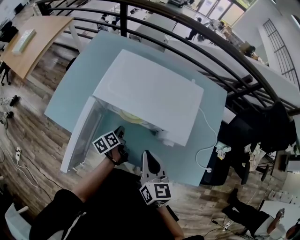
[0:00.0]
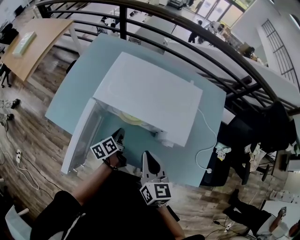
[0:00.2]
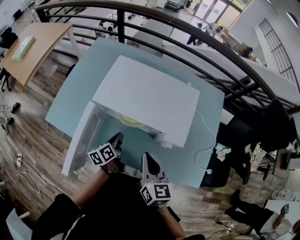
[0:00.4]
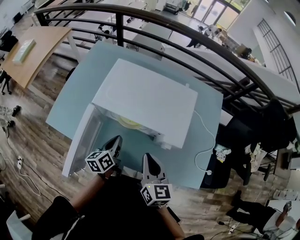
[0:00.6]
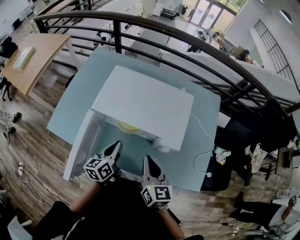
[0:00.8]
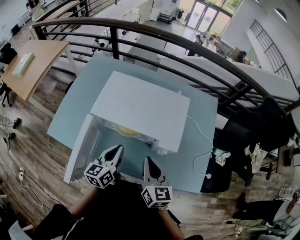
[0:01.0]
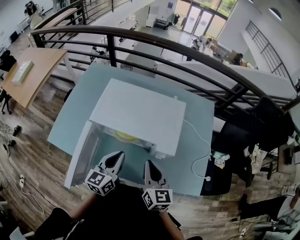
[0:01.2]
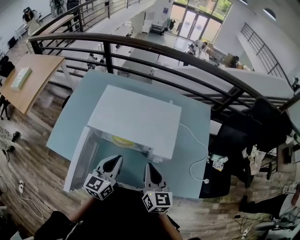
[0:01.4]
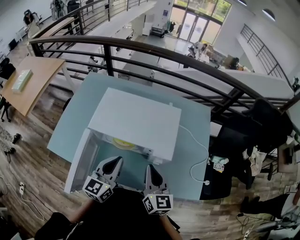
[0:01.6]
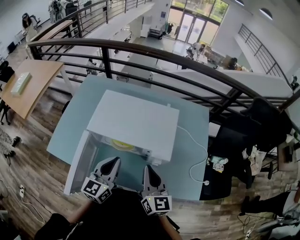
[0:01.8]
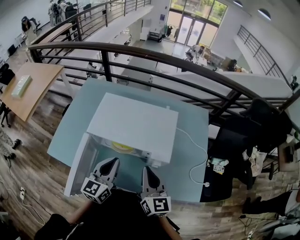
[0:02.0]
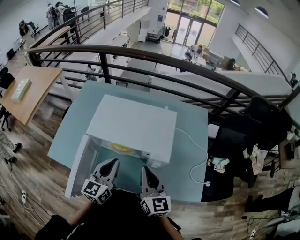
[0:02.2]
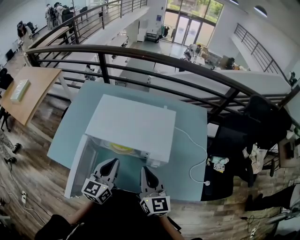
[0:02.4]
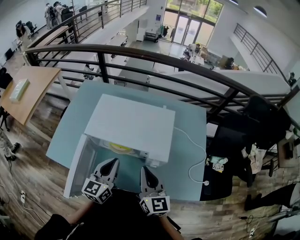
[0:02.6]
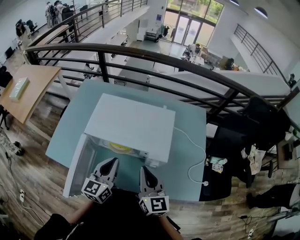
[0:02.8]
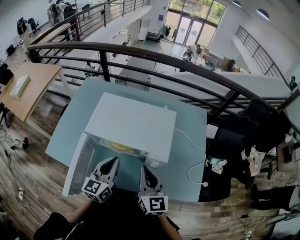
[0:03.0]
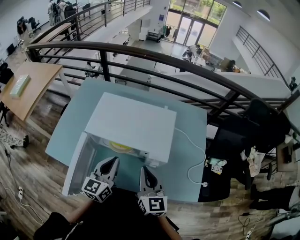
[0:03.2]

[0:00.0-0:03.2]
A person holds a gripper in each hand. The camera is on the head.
0:00.0 to 0:01.6: The right gripper moves about 10 cm.

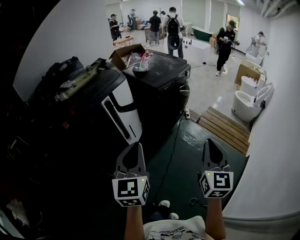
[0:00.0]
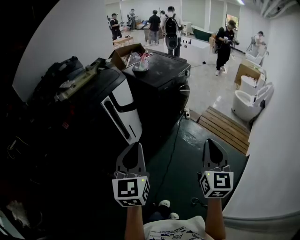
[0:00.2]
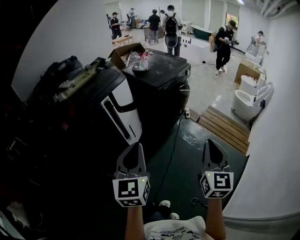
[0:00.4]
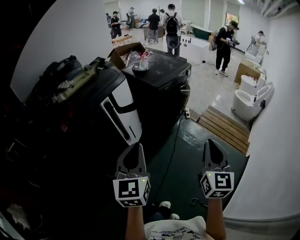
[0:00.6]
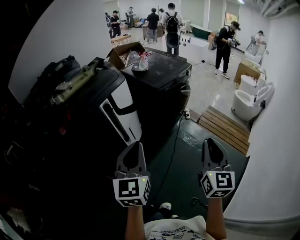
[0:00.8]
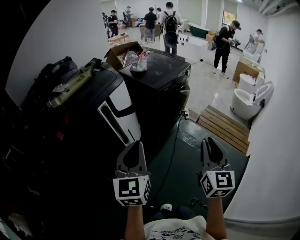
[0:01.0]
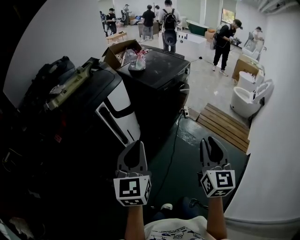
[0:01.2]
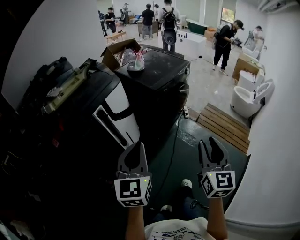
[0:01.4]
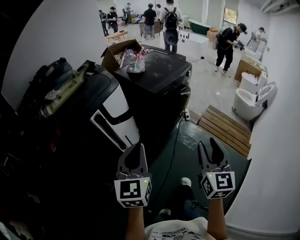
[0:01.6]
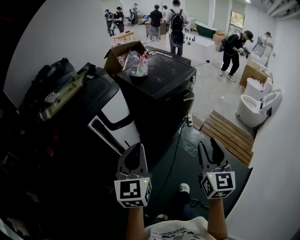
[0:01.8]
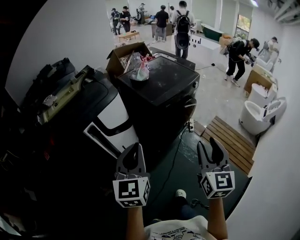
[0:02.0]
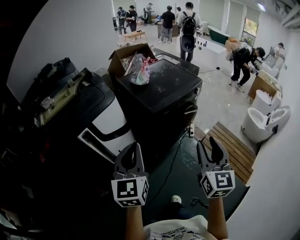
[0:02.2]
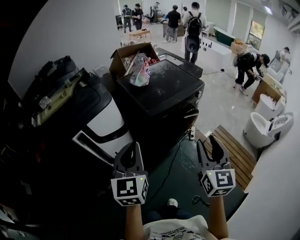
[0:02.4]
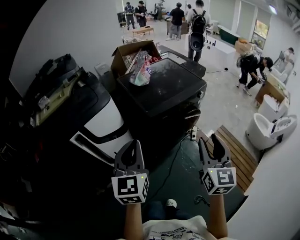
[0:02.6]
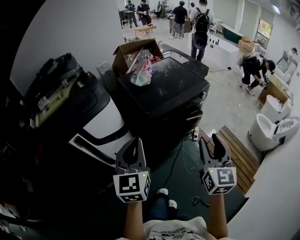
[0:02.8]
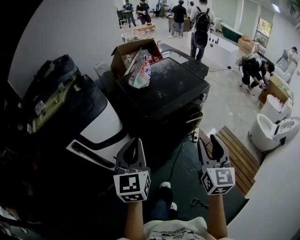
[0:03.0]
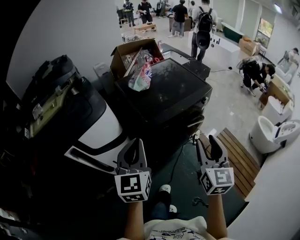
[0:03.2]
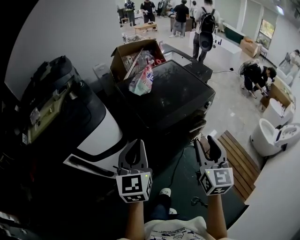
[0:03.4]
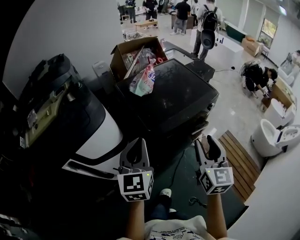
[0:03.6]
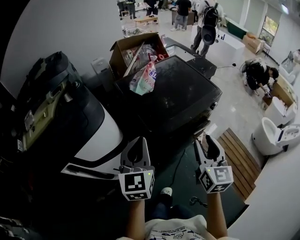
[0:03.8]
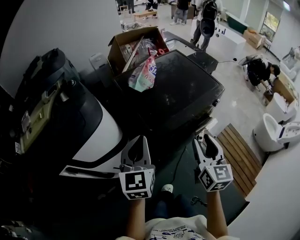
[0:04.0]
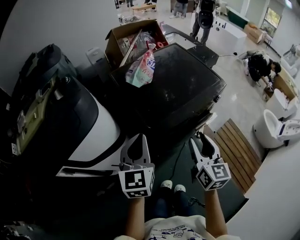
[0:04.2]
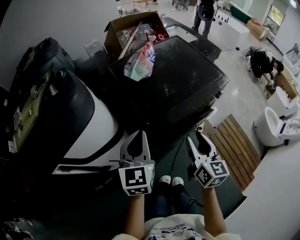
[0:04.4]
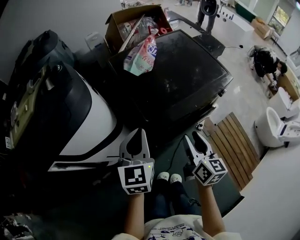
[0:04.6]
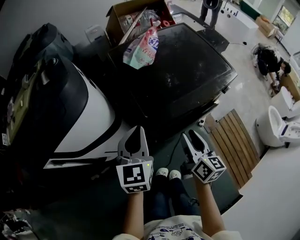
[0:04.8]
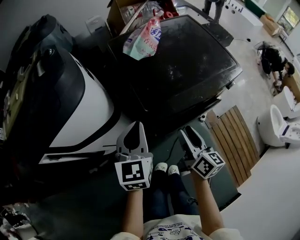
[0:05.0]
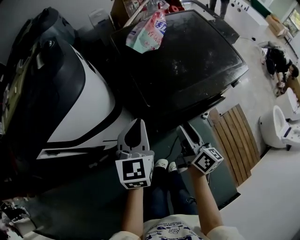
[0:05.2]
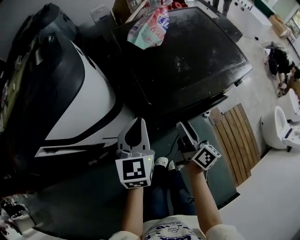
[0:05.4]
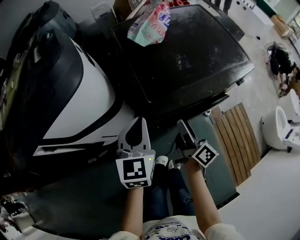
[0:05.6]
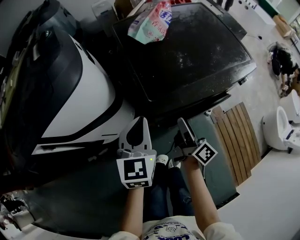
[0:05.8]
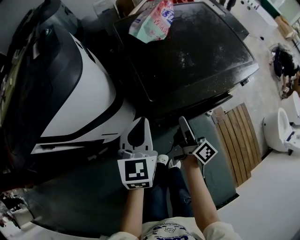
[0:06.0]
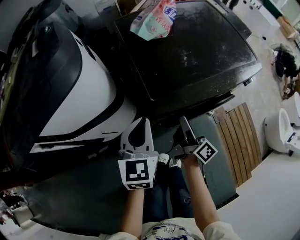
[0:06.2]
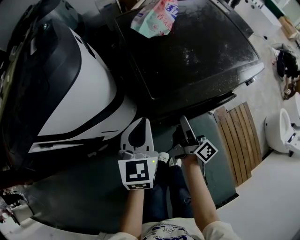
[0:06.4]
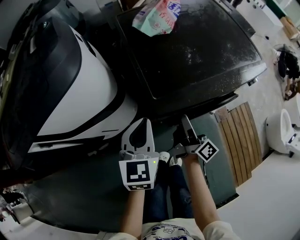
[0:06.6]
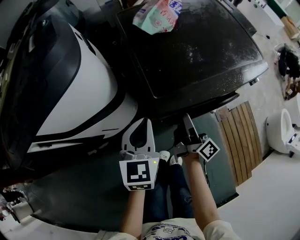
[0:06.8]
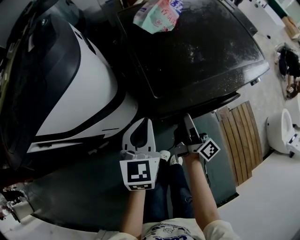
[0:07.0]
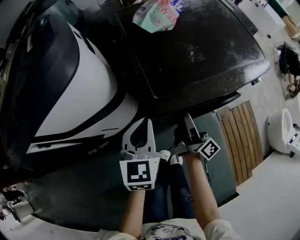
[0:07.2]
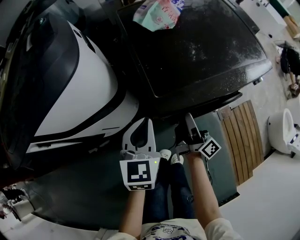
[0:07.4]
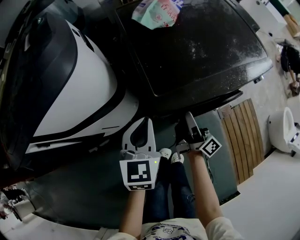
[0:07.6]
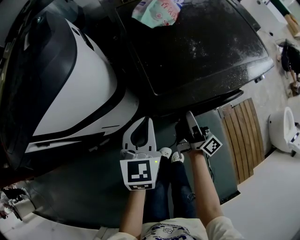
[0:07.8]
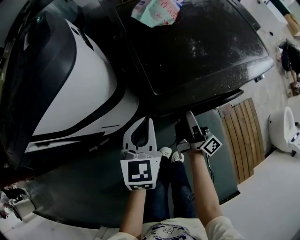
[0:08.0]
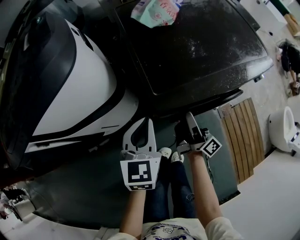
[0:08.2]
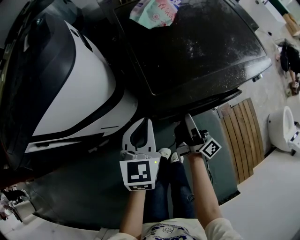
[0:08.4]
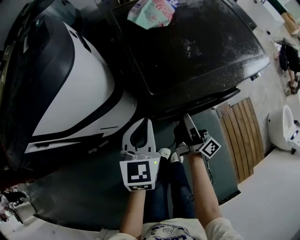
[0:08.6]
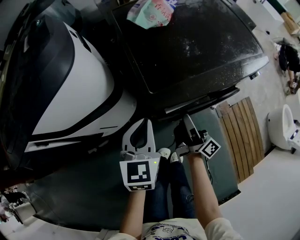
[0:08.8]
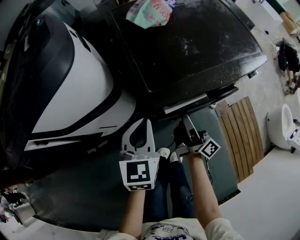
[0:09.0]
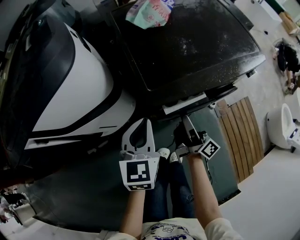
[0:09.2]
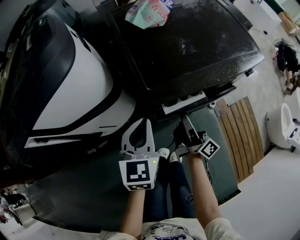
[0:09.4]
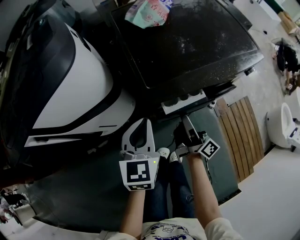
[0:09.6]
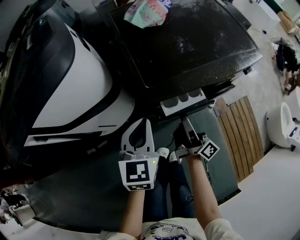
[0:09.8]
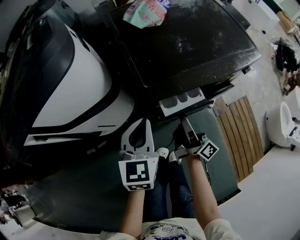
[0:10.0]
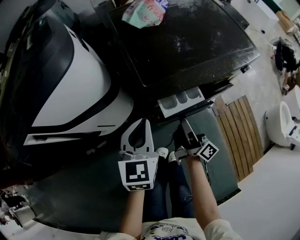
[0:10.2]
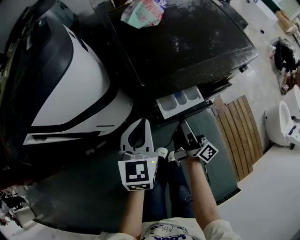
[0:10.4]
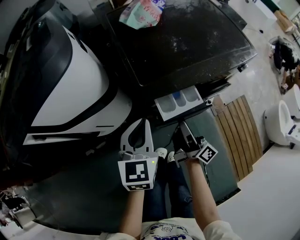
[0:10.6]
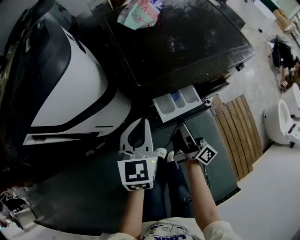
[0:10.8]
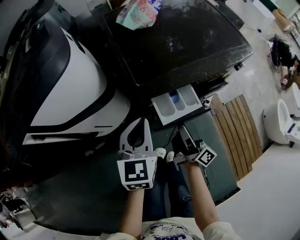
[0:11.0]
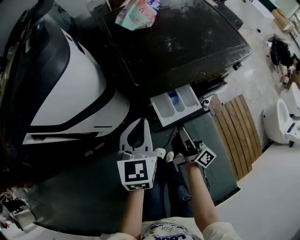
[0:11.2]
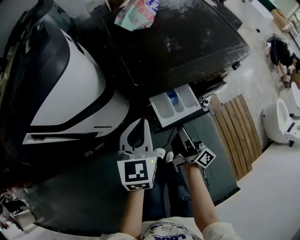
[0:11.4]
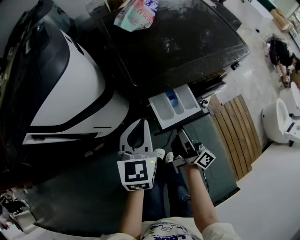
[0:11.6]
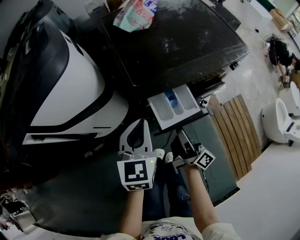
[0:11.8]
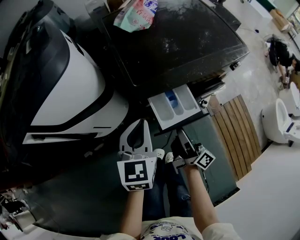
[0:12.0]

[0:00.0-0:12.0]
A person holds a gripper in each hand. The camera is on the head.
0:00.0 to 0:01.6: The grippers both shift forward by approximately 20 cm. The right gripper opens.
0:01.6 to 0:03.0: The two grippers go about 35 cm forward and to the right.
0:03.0 to 0:04.4: The two grippers go approximately 25 cm forward and downward. The right gripper rotates roughly 20 degrees.
0:04.4 to 0:06.0: The right gripper heads downward and forward, covering some 20 cm, and twists approximately 50 degrees clockwise, seen from behind. The left gripper is displaced downward by about 10 cm.
0:06.0 to 0:07.6: The left gripper is displaced downward by some 5 cm.
0:07.6 to 0:09.0: There are only small adjustments of the grippers.
0:09.0 to 0:10.4: The right gripper travels backward by about 5 cm.
0:10.4 to 0:12.0: The right gripper is displaced backward by about 5 cm.

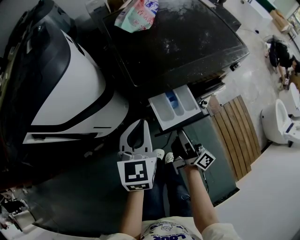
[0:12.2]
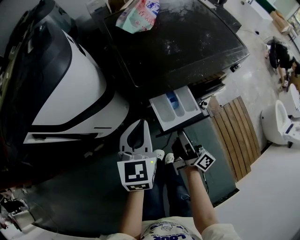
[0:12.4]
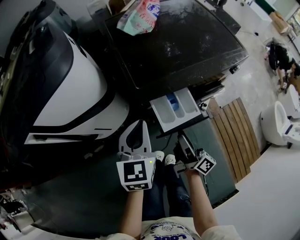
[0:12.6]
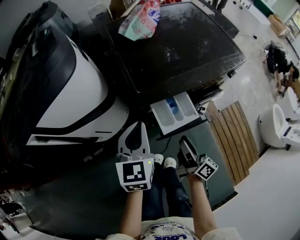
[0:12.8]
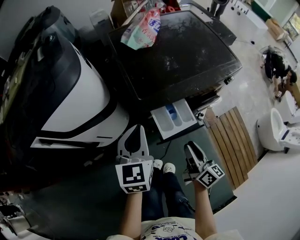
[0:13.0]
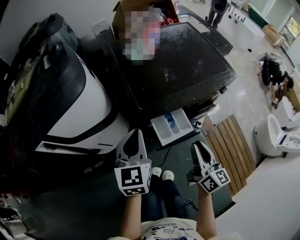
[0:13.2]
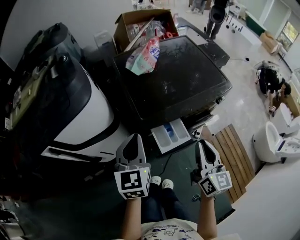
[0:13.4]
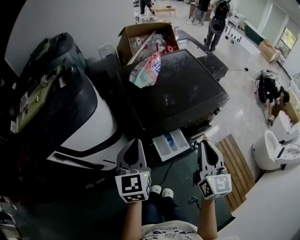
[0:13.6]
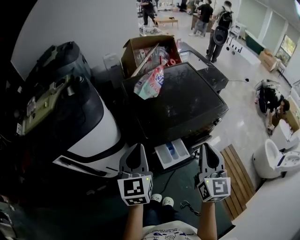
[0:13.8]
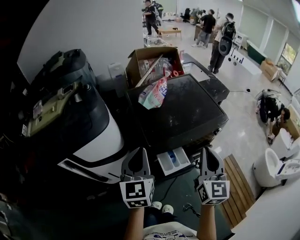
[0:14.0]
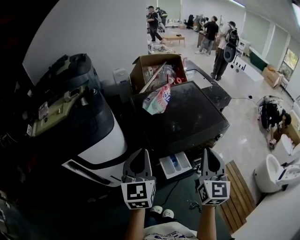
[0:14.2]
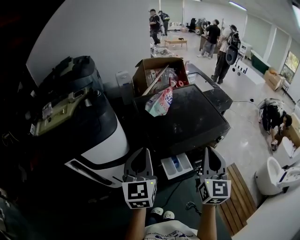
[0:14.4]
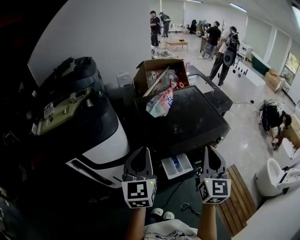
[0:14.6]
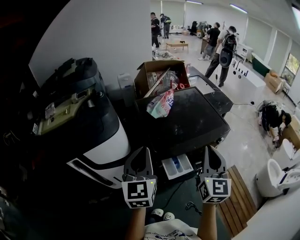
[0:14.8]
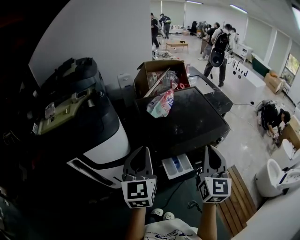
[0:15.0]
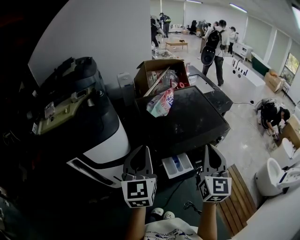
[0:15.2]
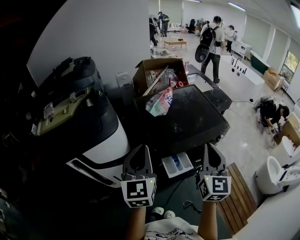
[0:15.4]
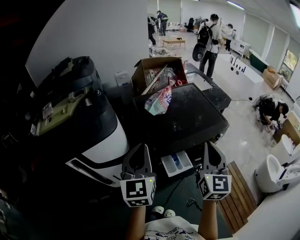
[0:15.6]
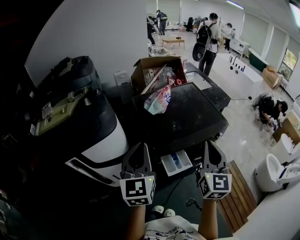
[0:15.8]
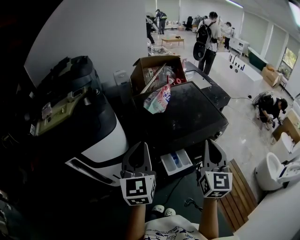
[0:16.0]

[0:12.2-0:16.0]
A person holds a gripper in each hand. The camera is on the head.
0:12.2 to 0:13.4: The left gripper is displaced upward by about 10 cm. The right gripper shifts approximately 20 cm upward, twists roughly 60 degrees counterclockwise, seen from behind, and closes its fingers.
0:13.4 to 0:14.8: The grippers both shift upward by about 20 cm. The right gripper turns by some 20 degrees.
0:14.8 to 0:16.0: Both grippers stay put.

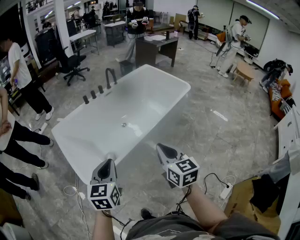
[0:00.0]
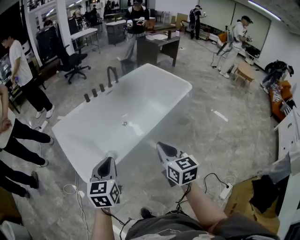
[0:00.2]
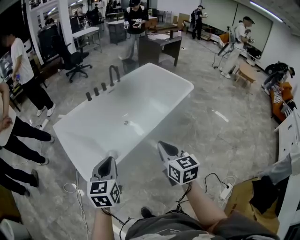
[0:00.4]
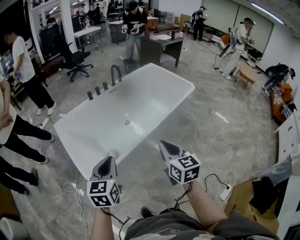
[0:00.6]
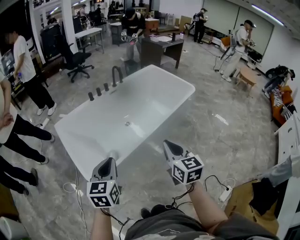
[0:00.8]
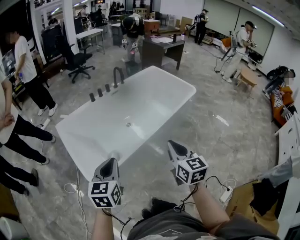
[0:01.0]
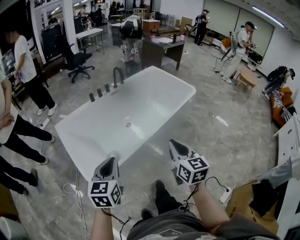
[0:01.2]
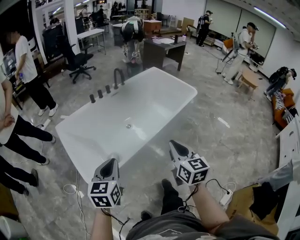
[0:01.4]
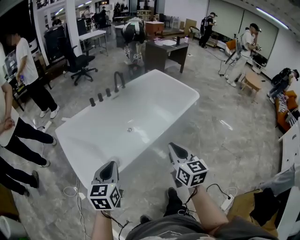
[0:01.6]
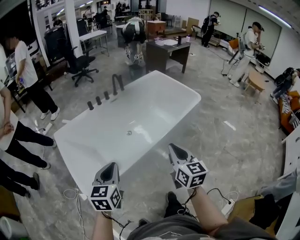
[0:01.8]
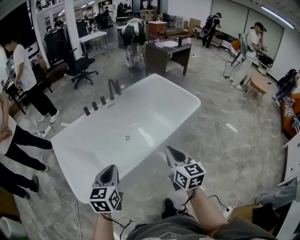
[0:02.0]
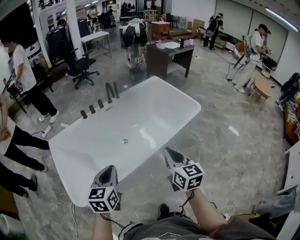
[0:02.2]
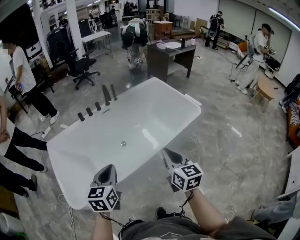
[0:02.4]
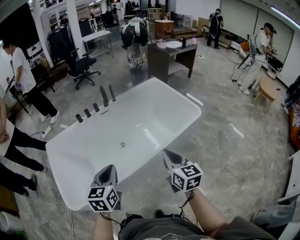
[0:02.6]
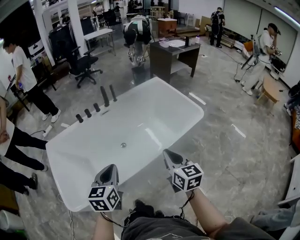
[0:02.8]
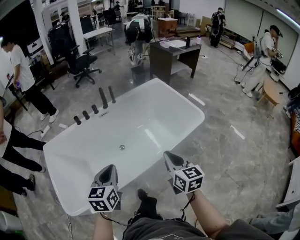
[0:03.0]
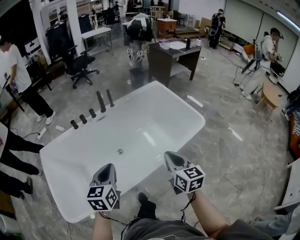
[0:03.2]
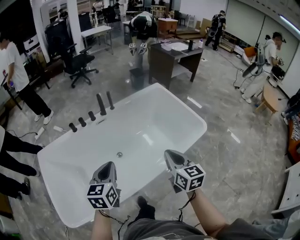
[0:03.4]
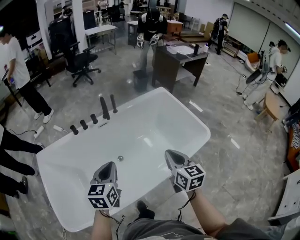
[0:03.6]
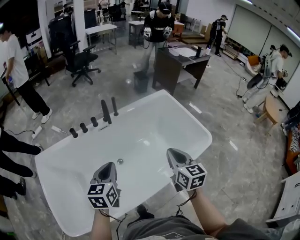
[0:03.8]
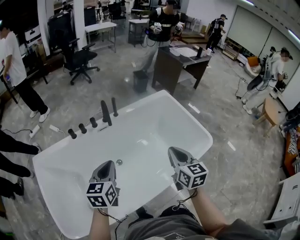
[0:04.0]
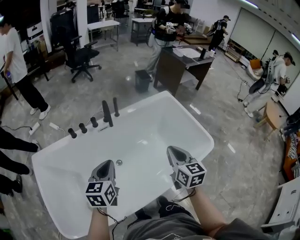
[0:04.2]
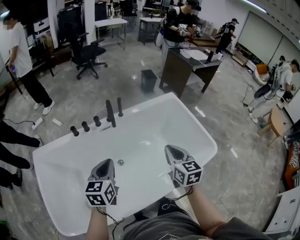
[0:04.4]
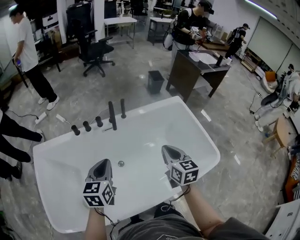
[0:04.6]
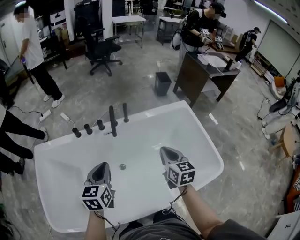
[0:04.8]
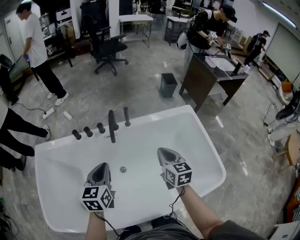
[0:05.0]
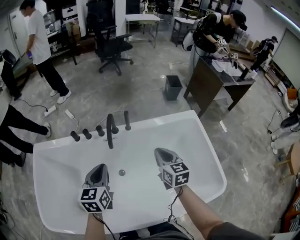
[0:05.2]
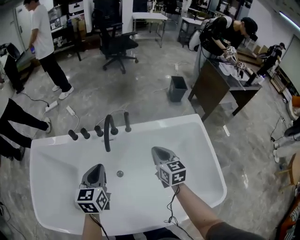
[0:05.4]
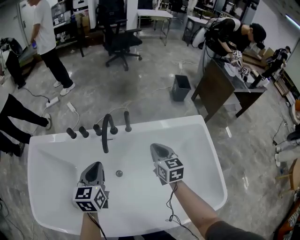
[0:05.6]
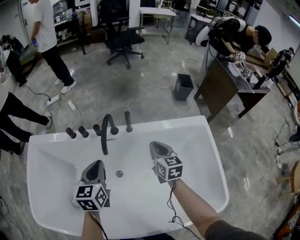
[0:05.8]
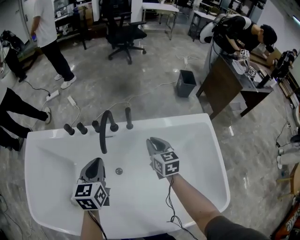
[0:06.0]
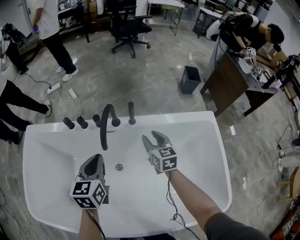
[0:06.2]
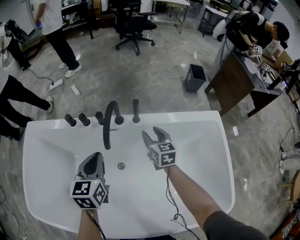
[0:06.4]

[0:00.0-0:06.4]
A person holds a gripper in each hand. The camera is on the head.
0:00.0 to 0:01.6: The right gripper shifts approximately 5 cm forward.
0:01.6 to 0:03.2: The pair of grippers is taken forward and to the right, roughly 40 cm.
0:03.2 to 0:04.8: The grippers both shift forward by roughly 35 cm.
0:04.8 to 0:06.4: The right gripper goes approximately 35 cm forward and downward, and opens up. Meanwhile the left gripper travels forward and downward by some 20 cm.
